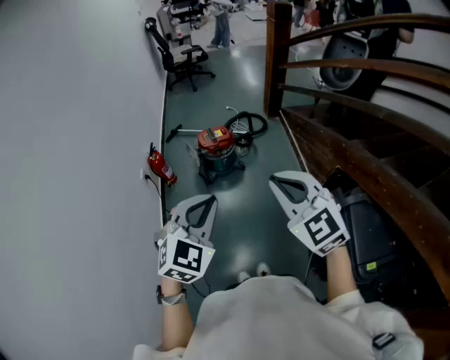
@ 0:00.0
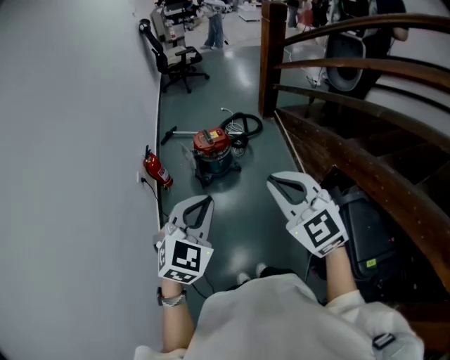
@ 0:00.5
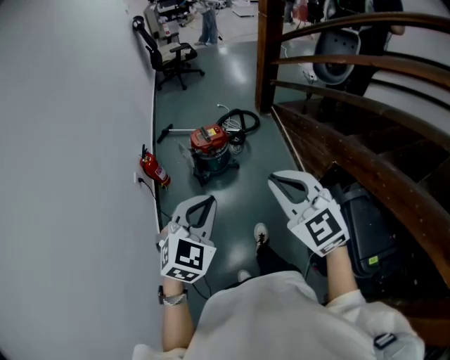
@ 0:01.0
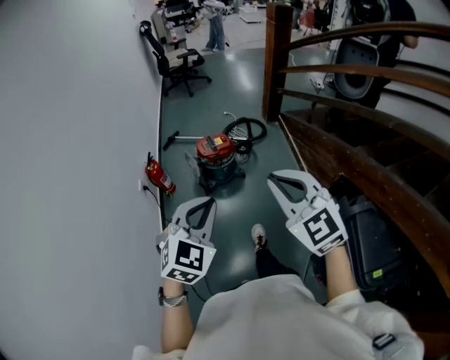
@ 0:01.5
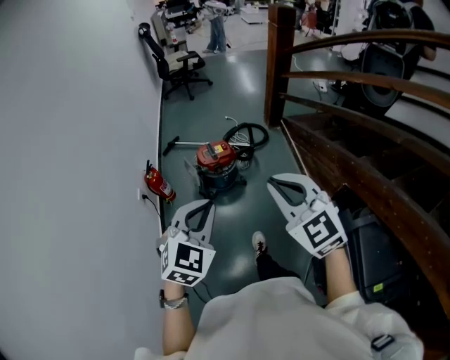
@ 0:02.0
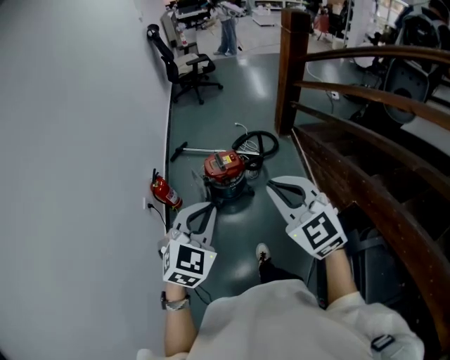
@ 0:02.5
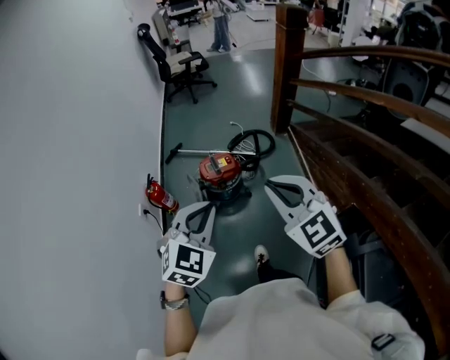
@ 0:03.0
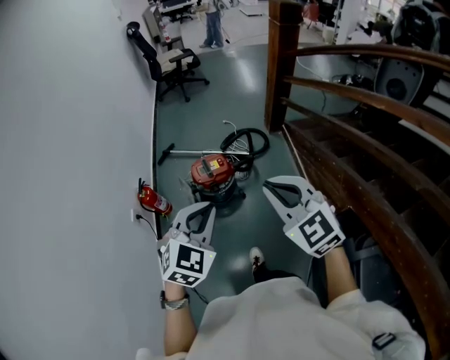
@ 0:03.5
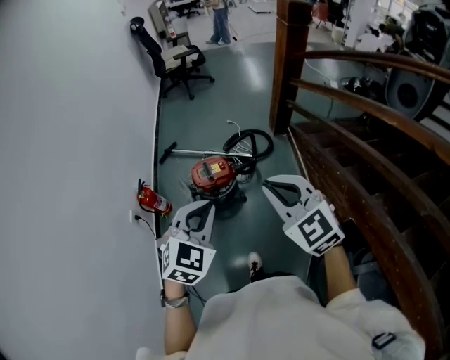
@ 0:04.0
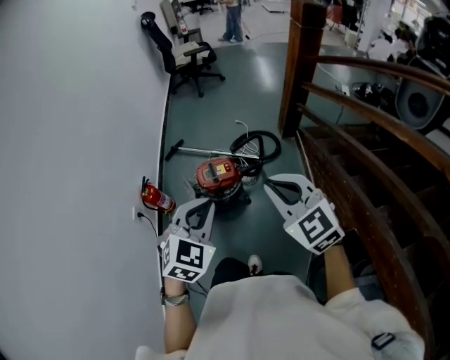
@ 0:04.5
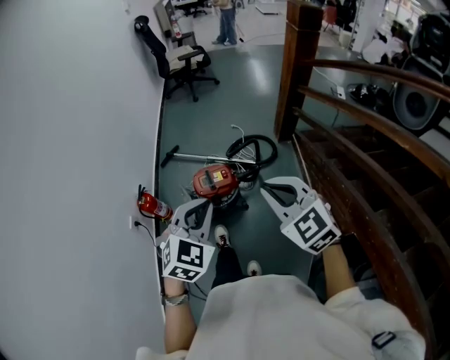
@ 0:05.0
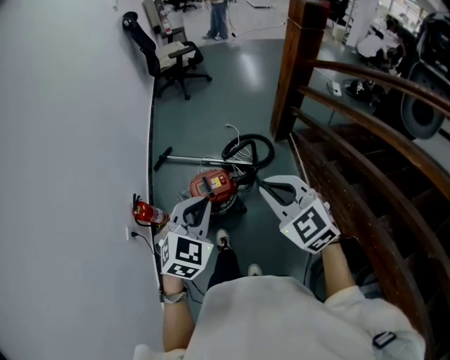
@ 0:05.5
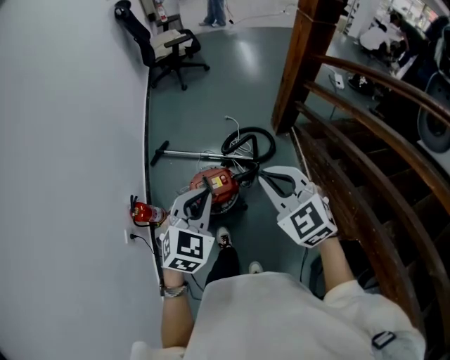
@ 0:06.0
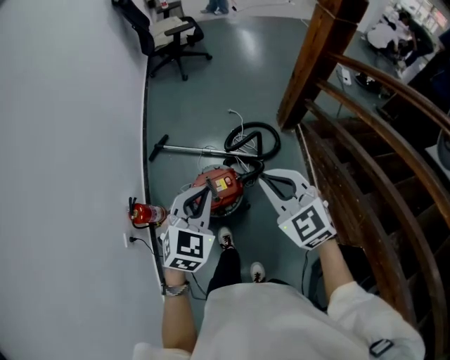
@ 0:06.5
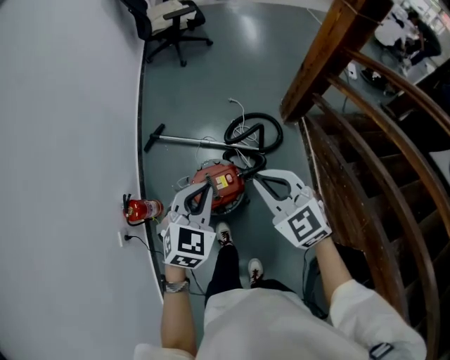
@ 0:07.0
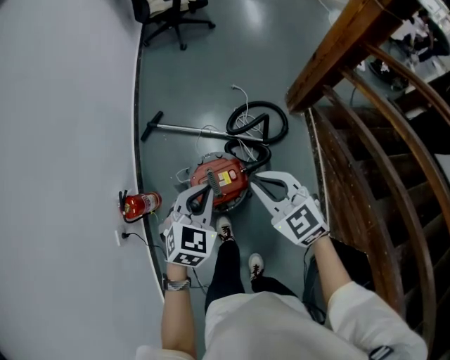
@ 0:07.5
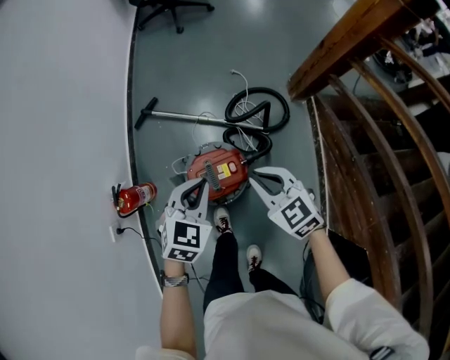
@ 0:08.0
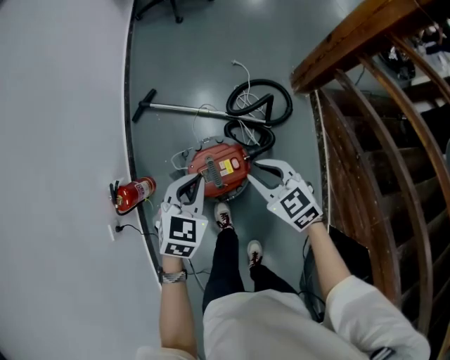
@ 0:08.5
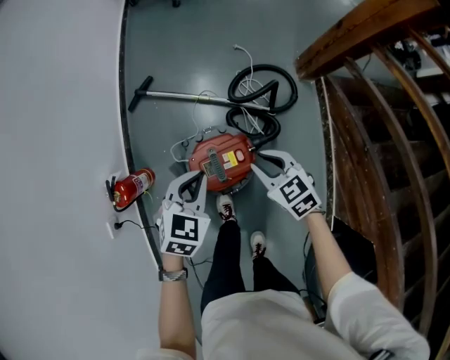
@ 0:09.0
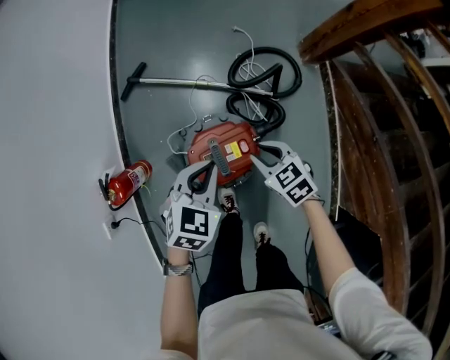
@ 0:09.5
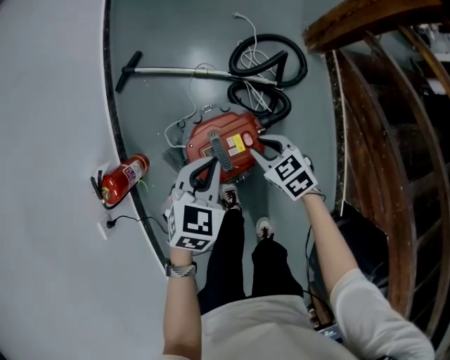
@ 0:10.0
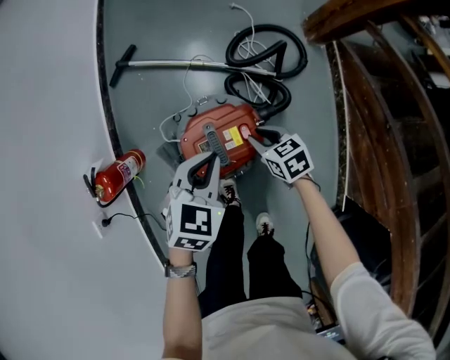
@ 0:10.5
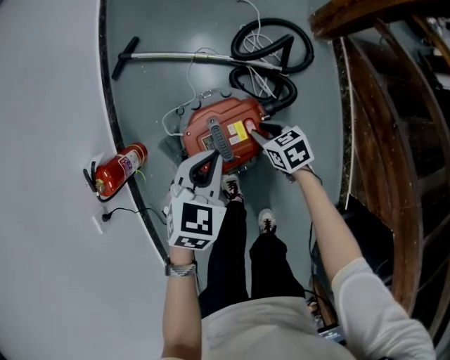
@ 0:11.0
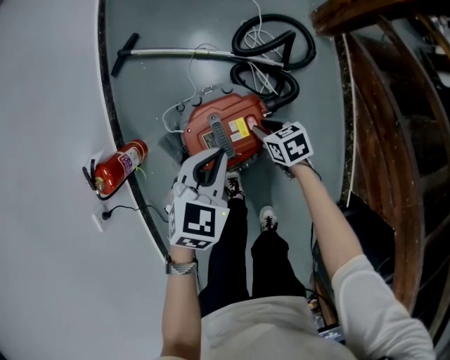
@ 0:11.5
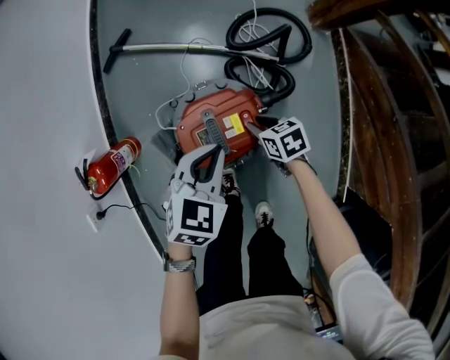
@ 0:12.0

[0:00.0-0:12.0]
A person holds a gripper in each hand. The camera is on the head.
0:00.0 to 0:02.0: The grippers both shift forward by about 15 cm.
0:02.0 to 0:04.0: The two grippers go roughly 25 cm forward.
0:04.0 to 0:06.0: Both grippers travel together forward, some 25 cm.
0:06.0 to 0:08.0: The two grippers go about 30 cm downward and forward. The right gripper rotates approximately 20 degrees.
0:08.0 to 0:10.0: The left gripper shifts some 20 cm downward. The right gripper moves downward, about 25 cm, and changes its angle by roughly 20 degrees.
0:10.0 to 0:12.0: The right gripper is displaced downward by some 10 cm, and rotates about 20 degrees.

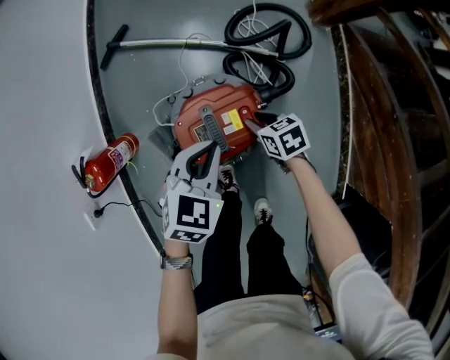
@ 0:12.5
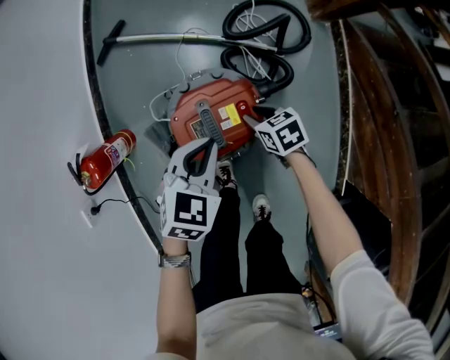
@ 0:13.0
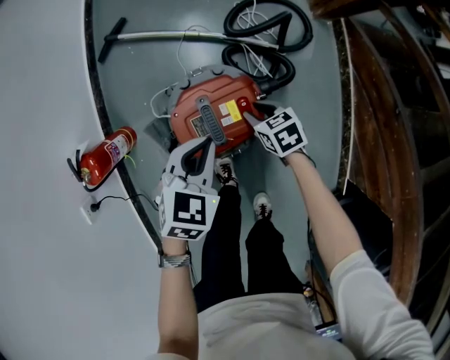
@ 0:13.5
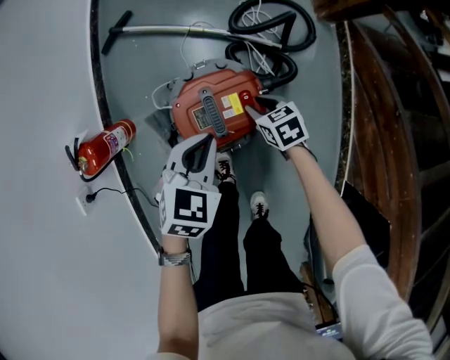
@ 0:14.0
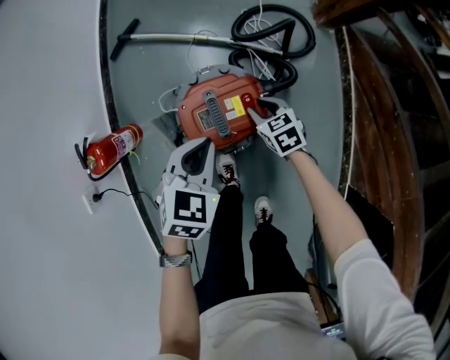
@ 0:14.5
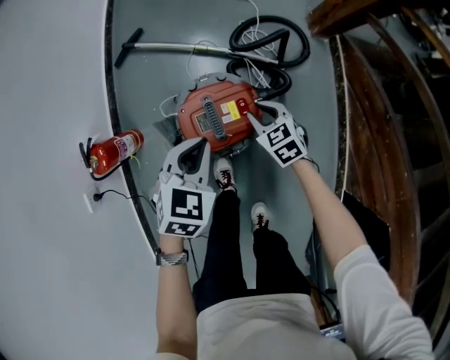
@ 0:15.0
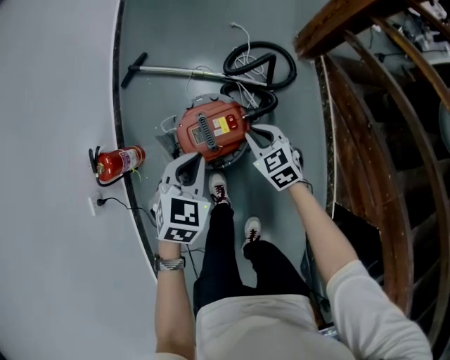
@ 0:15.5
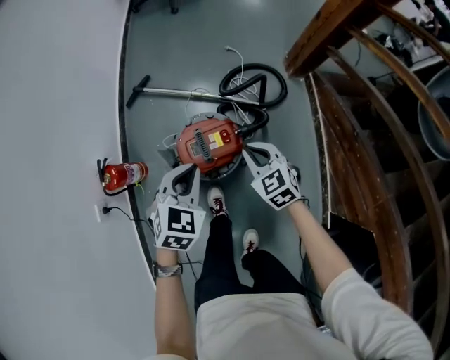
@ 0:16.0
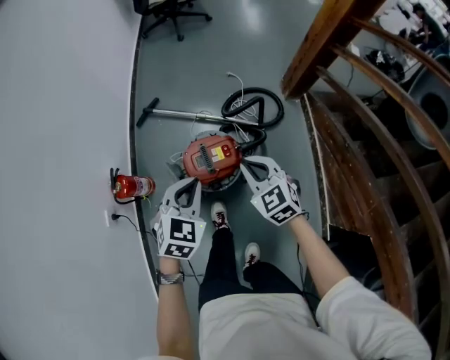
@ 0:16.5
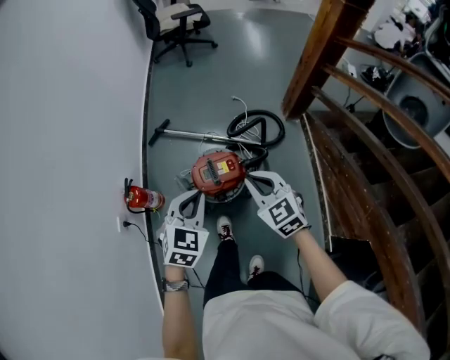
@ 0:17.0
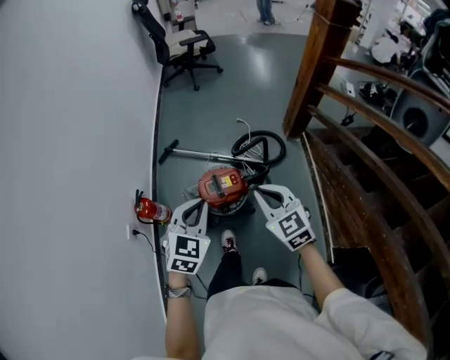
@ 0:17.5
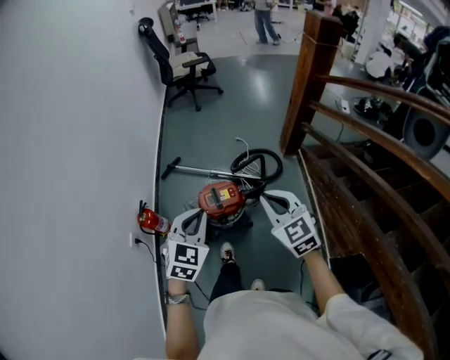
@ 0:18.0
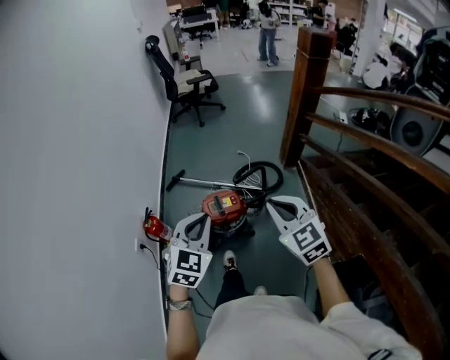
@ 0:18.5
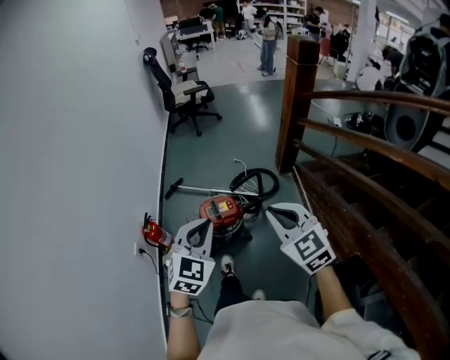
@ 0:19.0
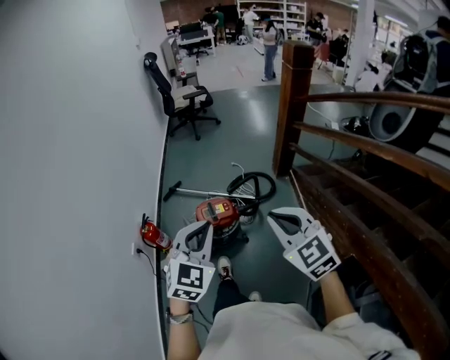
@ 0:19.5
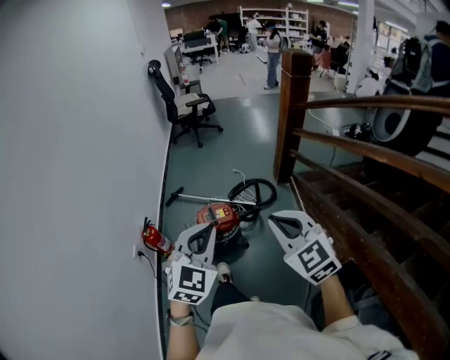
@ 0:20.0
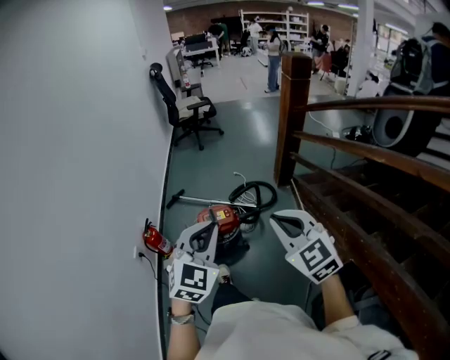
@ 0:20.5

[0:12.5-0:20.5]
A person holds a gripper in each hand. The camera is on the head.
0:12.5 to 0:14.5: The grippers move only a little.
0:14.5 to 0:16.5: The left gripper moves upward, approximately 20 cm. Meanwhile the right gripper shifts approximately 35 cm upward, changes its angle by approximately 30 degrees, and closes its fingers.
0:16.5 to 0:18.5: Both grippers travel together upward and backward, roughly 35 cm.
0:18.5 to 0:20.5: The right gripper heads backward and upward, covering some 15 cm. The left gripper heads backward, upward and to the right, covering roughly 15 cm.

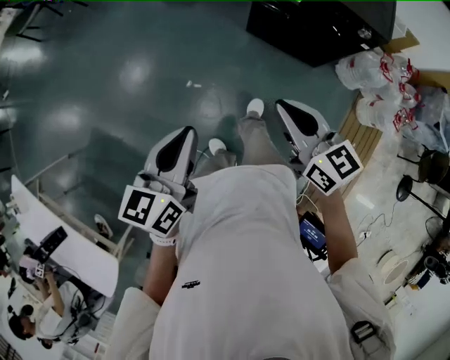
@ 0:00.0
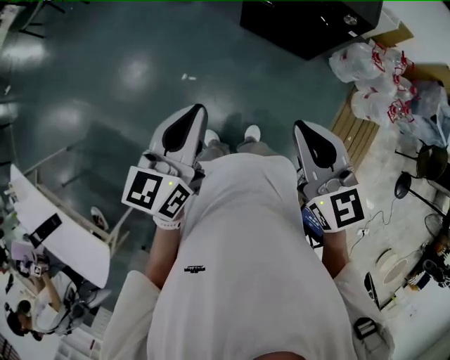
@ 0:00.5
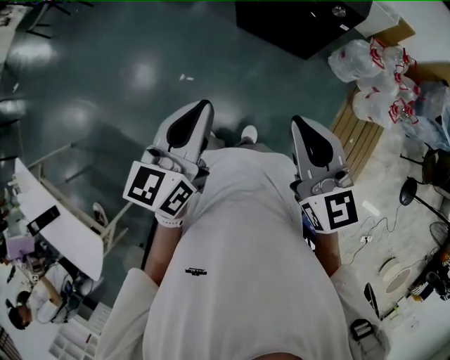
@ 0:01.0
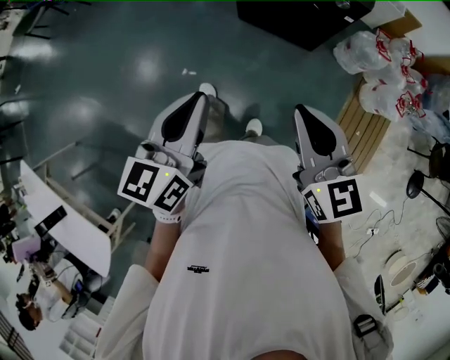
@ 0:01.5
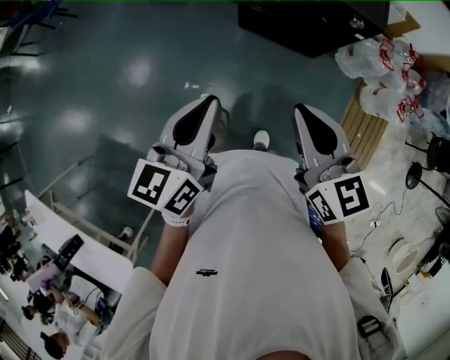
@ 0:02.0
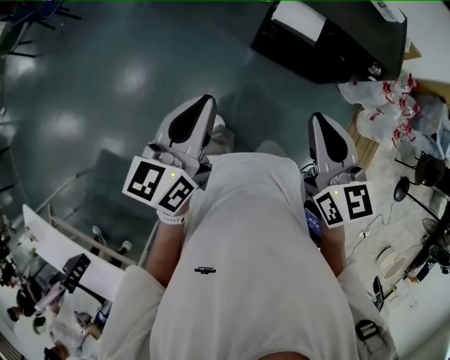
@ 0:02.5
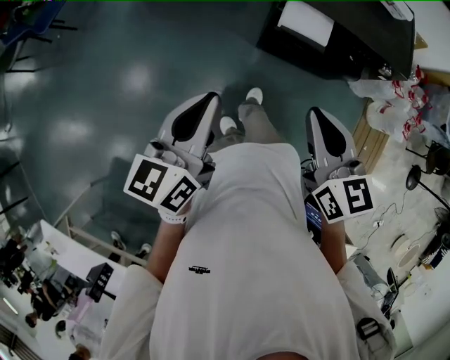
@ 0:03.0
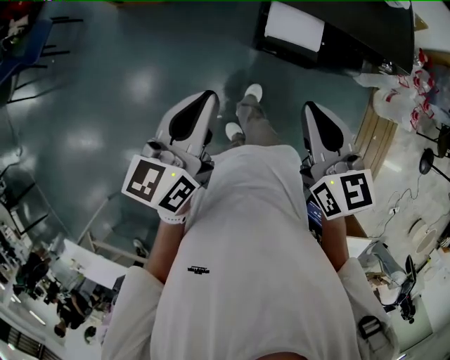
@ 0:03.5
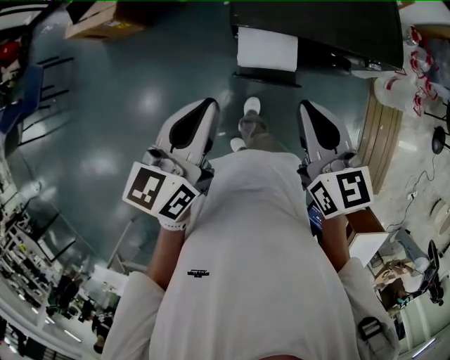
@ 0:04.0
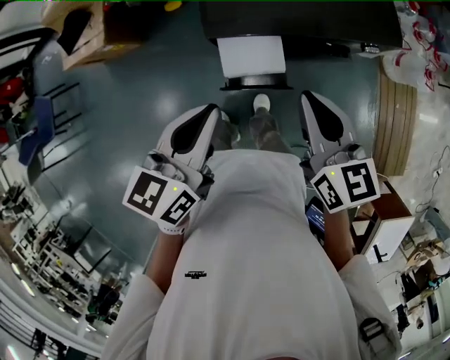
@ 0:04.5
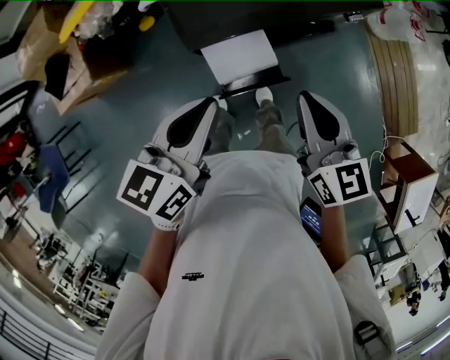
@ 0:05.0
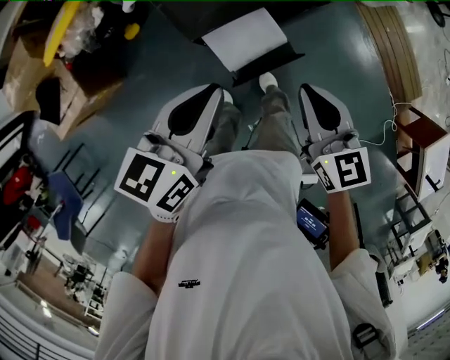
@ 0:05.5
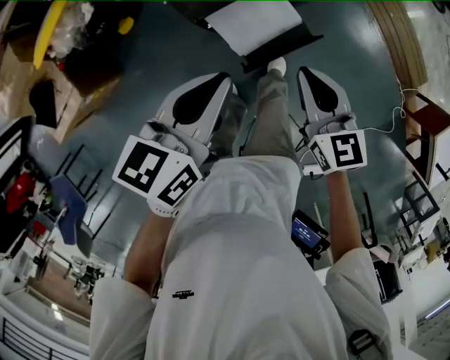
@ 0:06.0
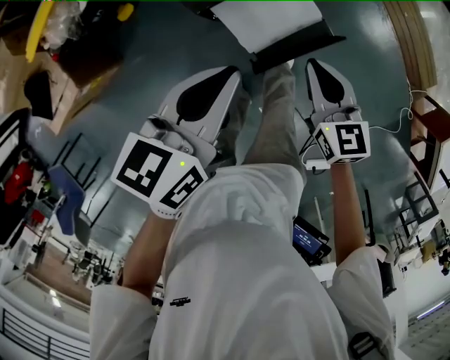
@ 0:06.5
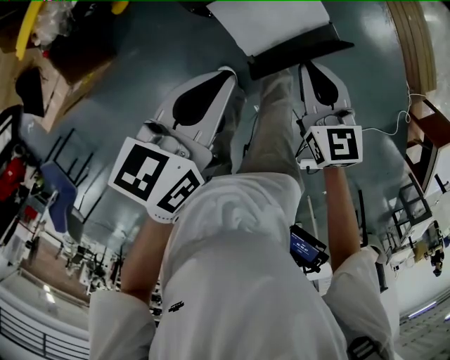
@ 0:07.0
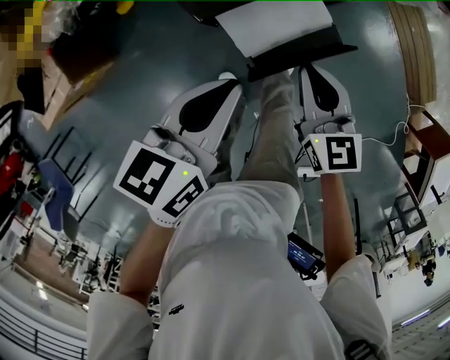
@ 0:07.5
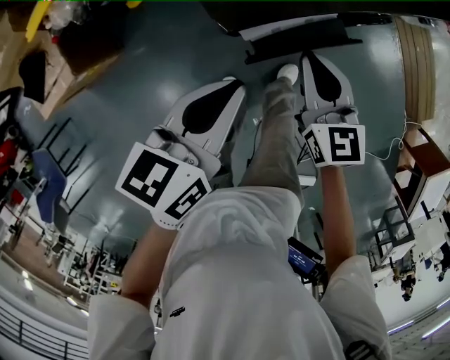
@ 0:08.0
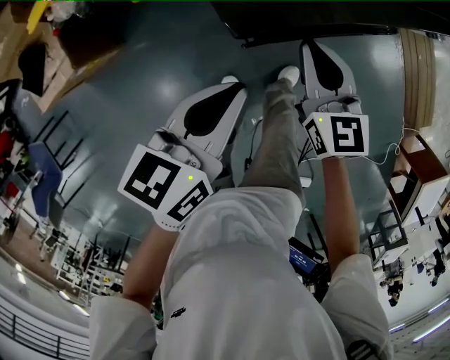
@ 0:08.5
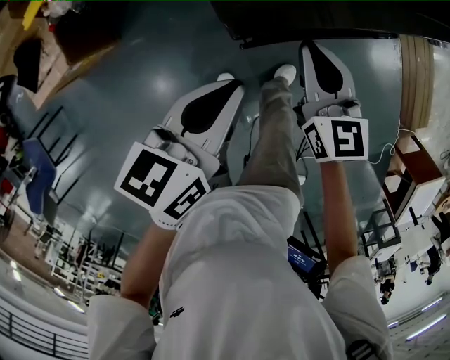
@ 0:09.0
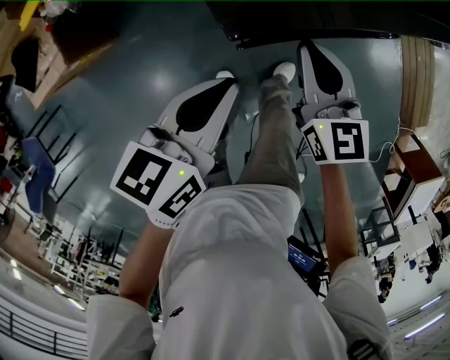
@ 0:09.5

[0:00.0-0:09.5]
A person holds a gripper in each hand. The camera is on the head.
0:00.0 to 0:02.0: The left gripper moves forward and to the right, some 15 cm. The right gripper is displaced to the right and upward by approximately 10 cm, and moves some 10 cm backward and comes back.
0:02.0 to 0:04.0: Both grippers move forward, roughly 35 cm. The right gripper rotates approximately 20 degrees; the left gripper rotates about 20 degrees.
0:04.0 to 0:05.5: The right gripper heads downward, covering about 10 cm, and swivels about 30 degrees. The left gripper shifts by approximately 10 cm, and rotates about 40 degrees.
0:05.5 to 0:07.5: The two grippers go about 15 cm downward.
0:07.5 to 0:09.5: The right gripper is displaced forward and to the left by about 10 cm.
